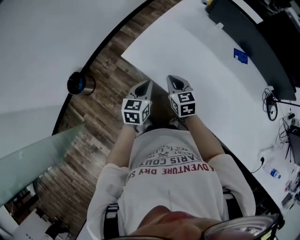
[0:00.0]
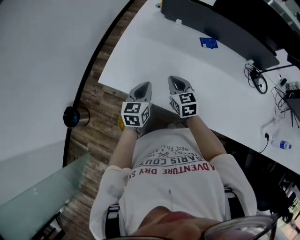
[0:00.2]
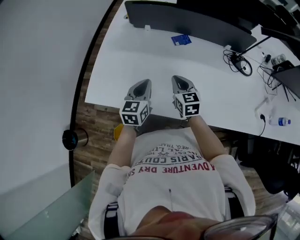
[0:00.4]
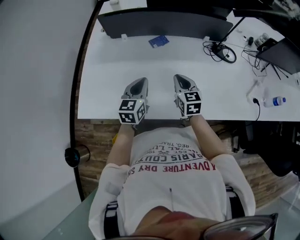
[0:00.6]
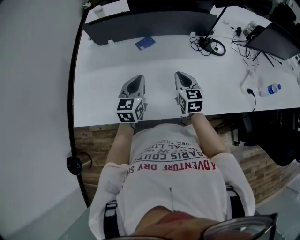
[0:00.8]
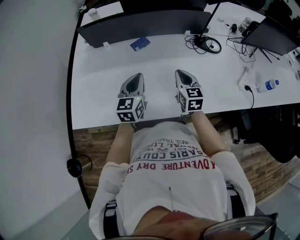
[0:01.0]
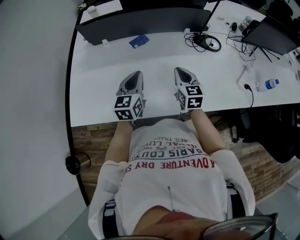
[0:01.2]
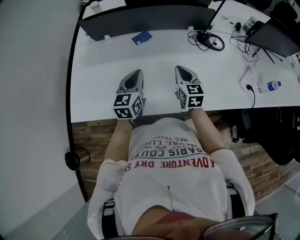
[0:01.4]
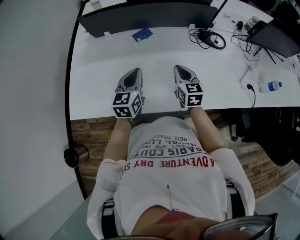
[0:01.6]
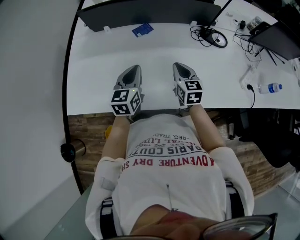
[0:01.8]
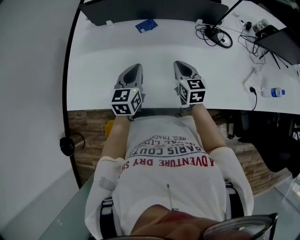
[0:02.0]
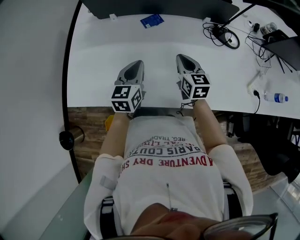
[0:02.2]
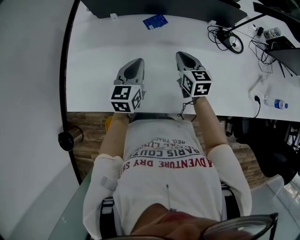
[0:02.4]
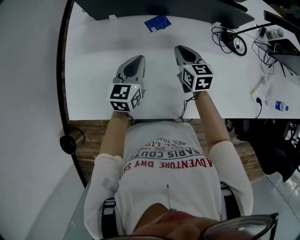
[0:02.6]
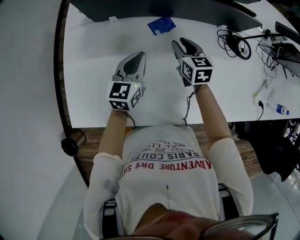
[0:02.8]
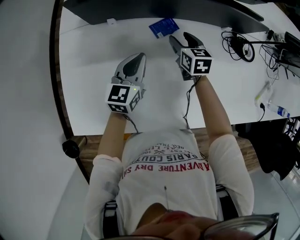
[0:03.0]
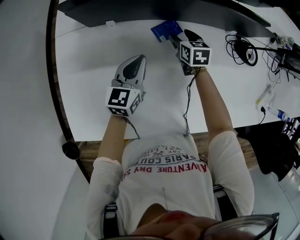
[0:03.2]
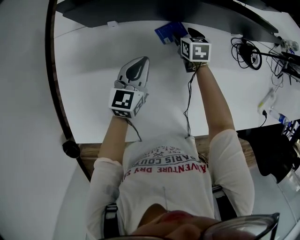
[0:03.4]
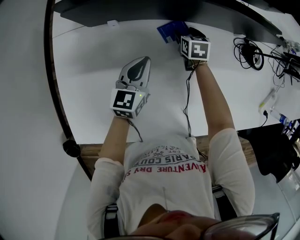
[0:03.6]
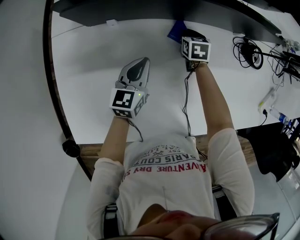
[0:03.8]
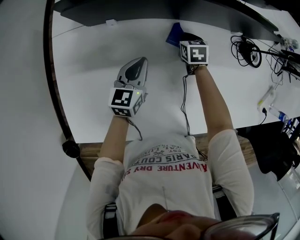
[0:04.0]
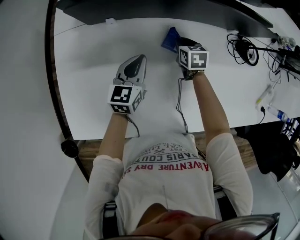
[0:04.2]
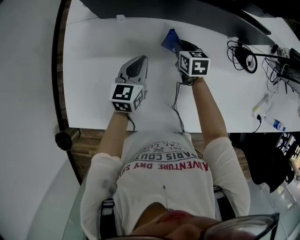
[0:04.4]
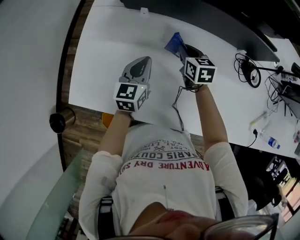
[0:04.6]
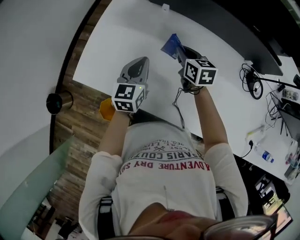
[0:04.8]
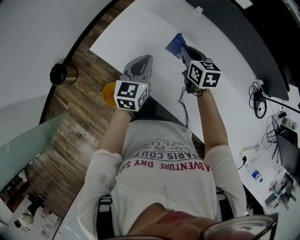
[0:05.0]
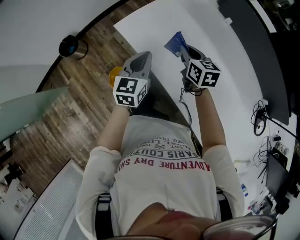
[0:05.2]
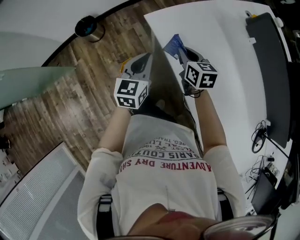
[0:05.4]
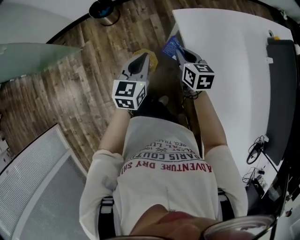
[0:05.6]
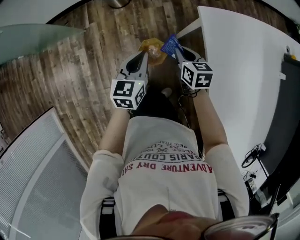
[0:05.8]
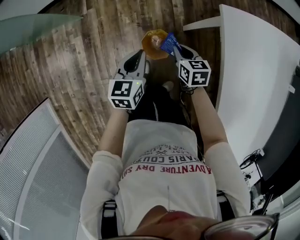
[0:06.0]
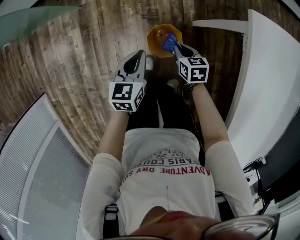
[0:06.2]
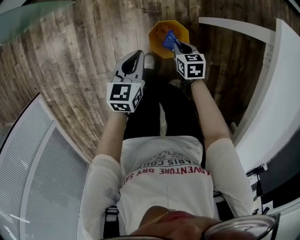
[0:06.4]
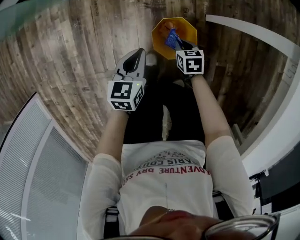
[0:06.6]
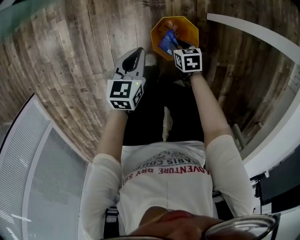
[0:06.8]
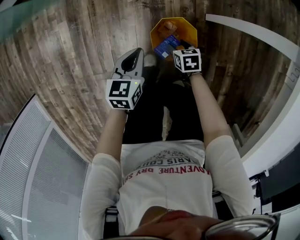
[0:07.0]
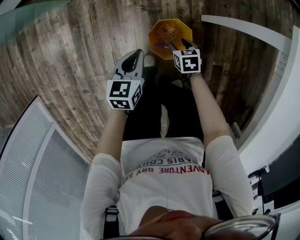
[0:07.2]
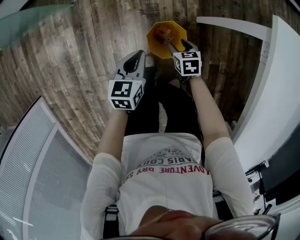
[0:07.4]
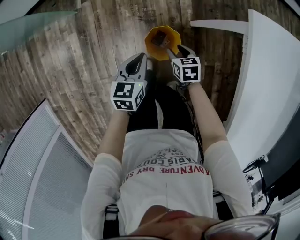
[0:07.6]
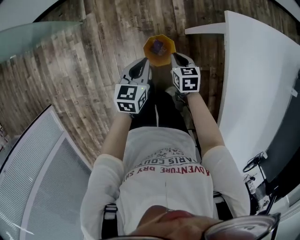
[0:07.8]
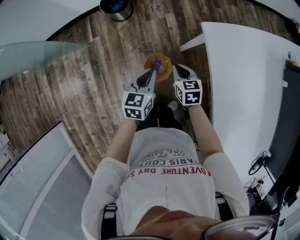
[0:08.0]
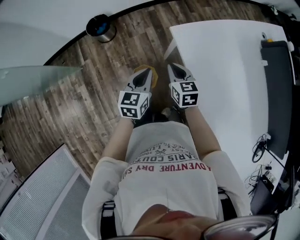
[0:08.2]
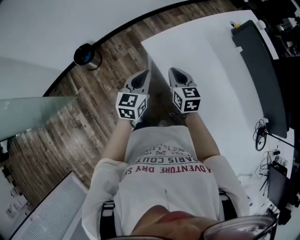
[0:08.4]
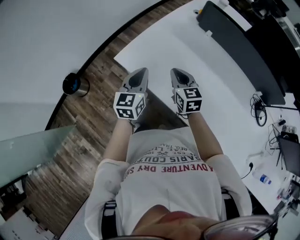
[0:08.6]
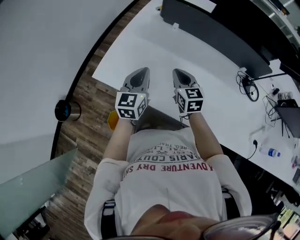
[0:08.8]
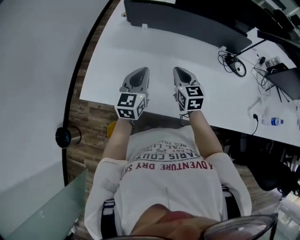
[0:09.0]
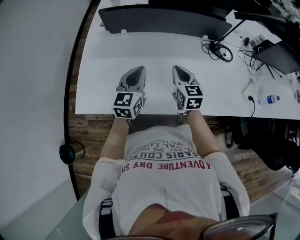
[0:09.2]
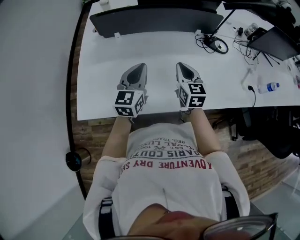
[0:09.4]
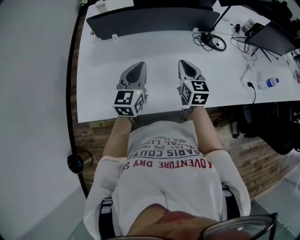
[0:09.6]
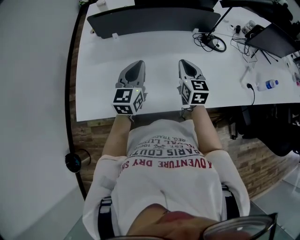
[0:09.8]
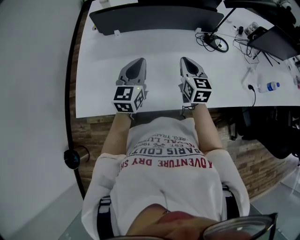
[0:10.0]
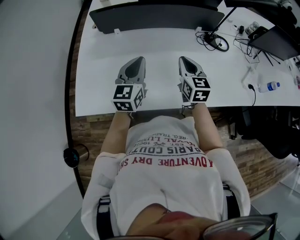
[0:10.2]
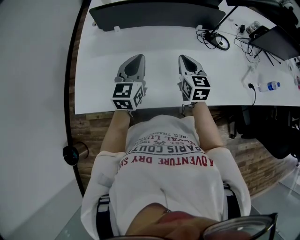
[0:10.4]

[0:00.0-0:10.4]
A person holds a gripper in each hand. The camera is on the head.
0.0 to 1.4 s: The left gripper ends up approximately 40 cm from where it was, and turns by roughly 40 degrees. The right gripper moves roughly 50 cm, and rotates about 50 degrees.
1.4 to 3.0 s: The left gripper travels forward, to the left and downward by approximately 25 cm. Meanwhile the right gripper shifts some 30 cm forward and to the left, rotates approximately 20 degrees, and opens.
3.0 to 4.4 s: The right gripper moves approximately 10 cm downward and comes back, and closes its fingers.
4.4 to 6.0 s: The two grippers travel together, roughly 70 cm. The left gripper rotates approximately 80 degrees. The right gripper rotates roughly 80 degrees.
6.0 to 7.4 s: Both grippers move downward, roughly 25 cm. The right gripper opens.
7.4 to 9.0 s: Both grippers are carried approximately 60 cm. The right gripper is displaced upward by roughly 60 cm, angles its fingers upward, by approximately 40 degrees, and closes up. The left gripper tilts its fingers about 30 degrees upward.
9.0 to 10.4 s: The right gripper goes roughly 10 cm to the right. The left gripper heads to the right, covering roughly 5 cm.

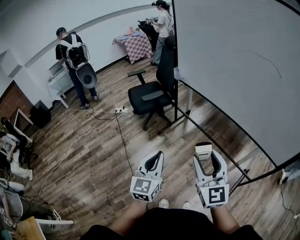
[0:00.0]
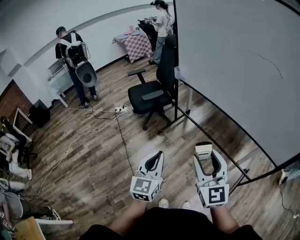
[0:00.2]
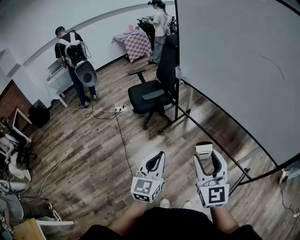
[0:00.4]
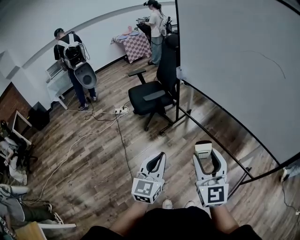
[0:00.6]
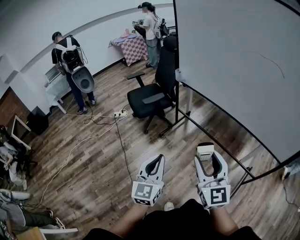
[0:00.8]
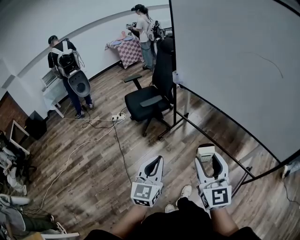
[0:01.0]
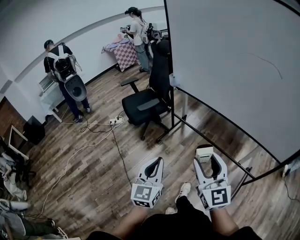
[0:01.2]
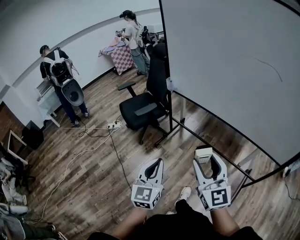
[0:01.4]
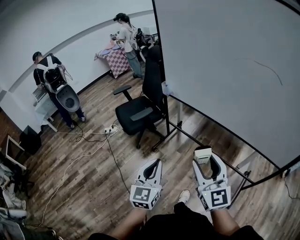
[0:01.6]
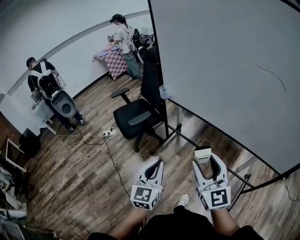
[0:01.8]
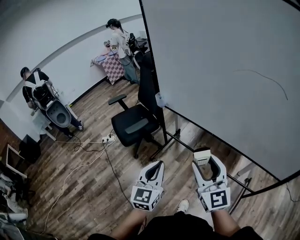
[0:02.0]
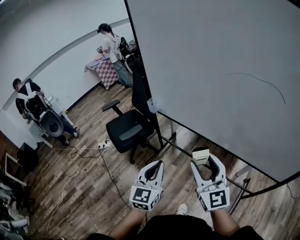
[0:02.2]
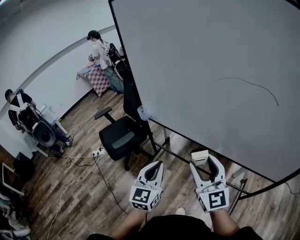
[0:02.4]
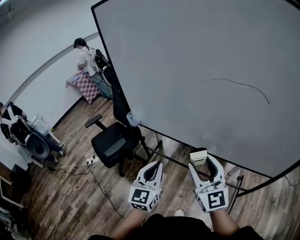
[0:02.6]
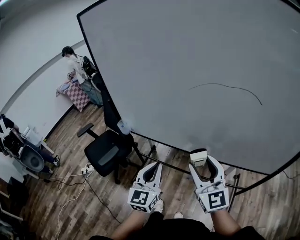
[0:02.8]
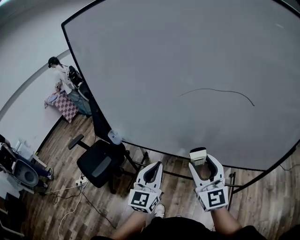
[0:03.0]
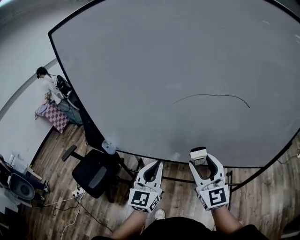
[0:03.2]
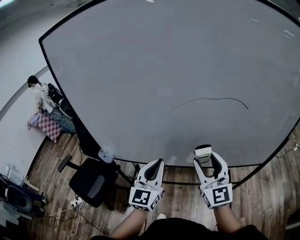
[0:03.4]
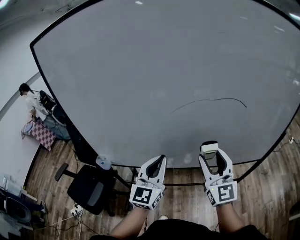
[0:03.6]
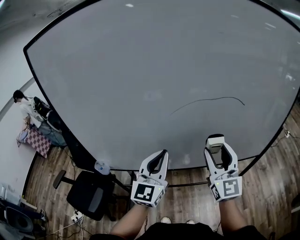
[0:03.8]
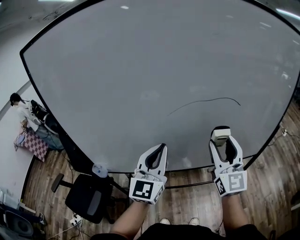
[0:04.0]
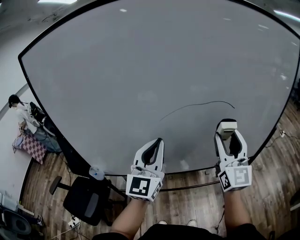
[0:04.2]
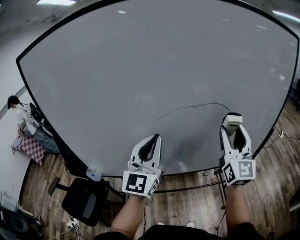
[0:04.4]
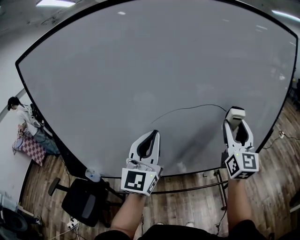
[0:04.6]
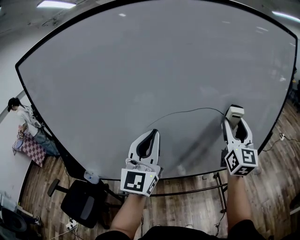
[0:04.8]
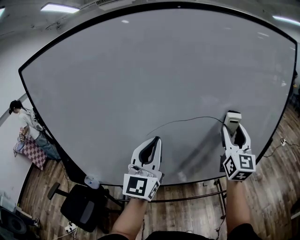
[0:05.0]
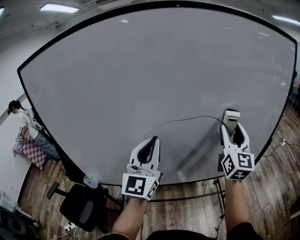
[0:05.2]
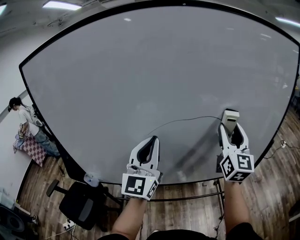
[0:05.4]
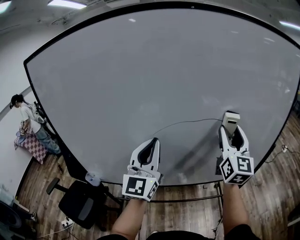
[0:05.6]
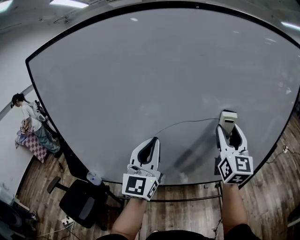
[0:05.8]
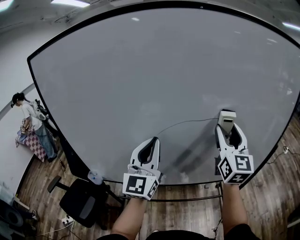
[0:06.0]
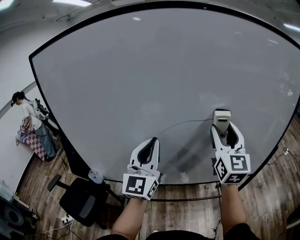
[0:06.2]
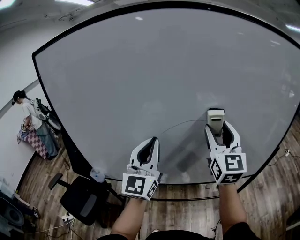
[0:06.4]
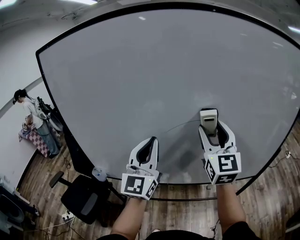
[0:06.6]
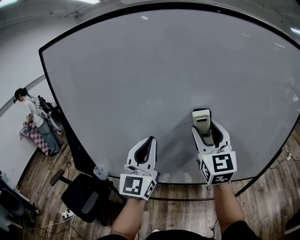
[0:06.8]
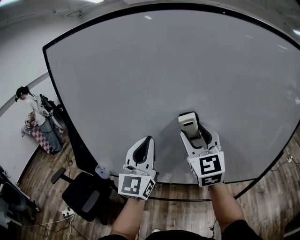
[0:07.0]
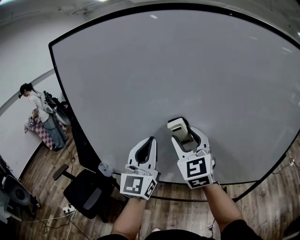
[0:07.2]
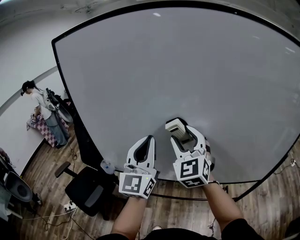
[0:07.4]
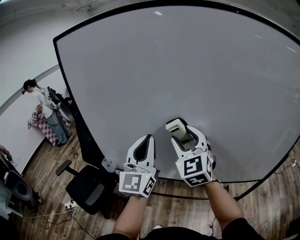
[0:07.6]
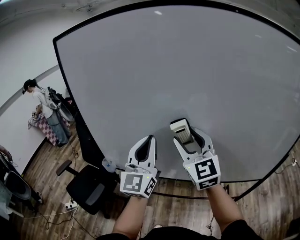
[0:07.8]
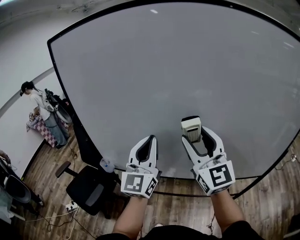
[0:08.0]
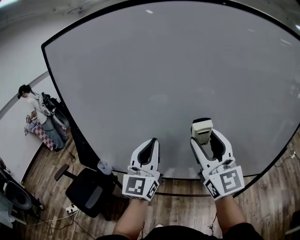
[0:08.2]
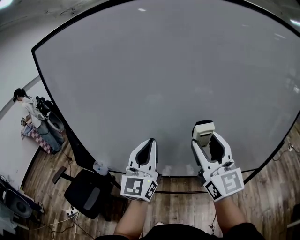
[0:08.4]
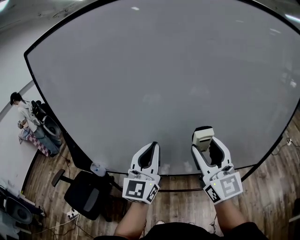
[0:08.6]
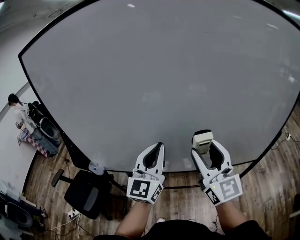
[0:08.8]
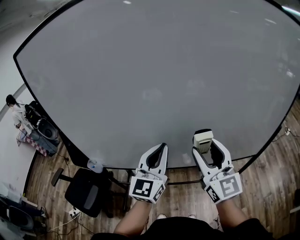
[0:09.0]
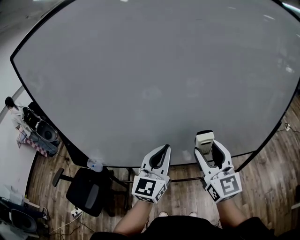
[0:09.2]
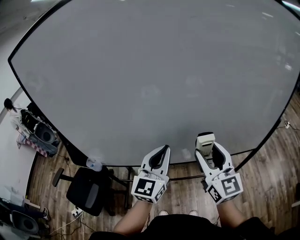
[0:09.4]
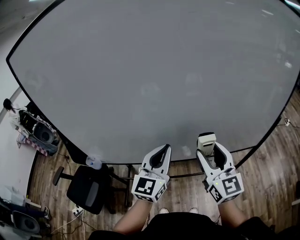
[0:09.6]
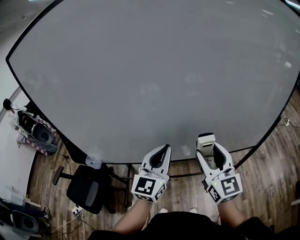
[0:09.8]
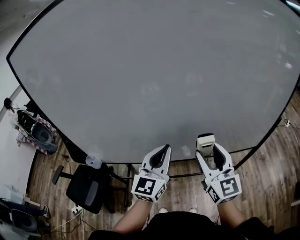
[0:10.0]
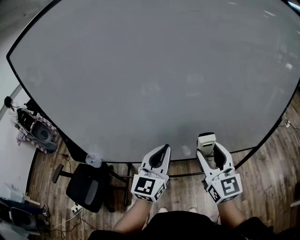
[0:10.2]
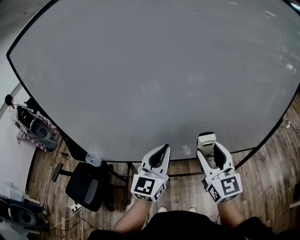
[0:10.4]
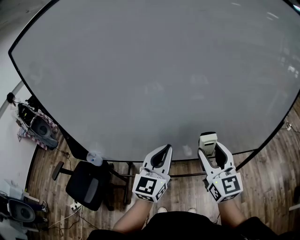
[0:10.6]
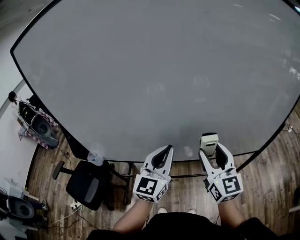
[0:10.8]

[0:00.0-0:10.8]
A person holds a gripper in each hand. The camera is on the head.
0.0 to 1.6 s: Both grippers move forward, approximately 15 cm.
1.6 to 3.0 s: The right gripper changes place by approximately 30 cm, and swivels some 20 degrees. The left gripper changes place by some 40 cm, and changes its angle by approximately 30 degrees.
3.0 to 4.6 s: The right gripper ends up roughly 25 cm from where it was, and swivels about 40 degrees. Meanwhile the left gripper heads upward, covering roughly 20 cm, and turns by approximately 30 degrees.
4.6 to 6.2 s: The right gripper is displaced to the left by some 10 cm.
6.2 to 7.8 s: The right gripper is displaced to the left by about 20 cm, and rotates roughly 30 degrees; the left gripper shifts about 10 cm to the left.
7.8 to 9.2 s: Both grippers move to the right and downward, approximately 20 cm. The left gripper changes its angle by about 30 degrees. The right gripper swivels some 20 degrees.
9.2 to 10.8 s: The grippers make only small movements.

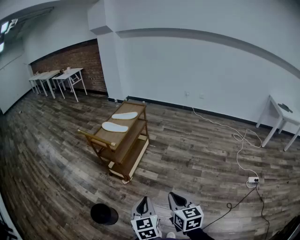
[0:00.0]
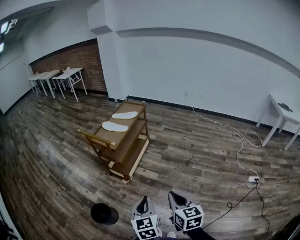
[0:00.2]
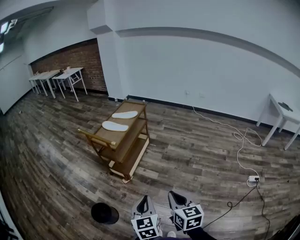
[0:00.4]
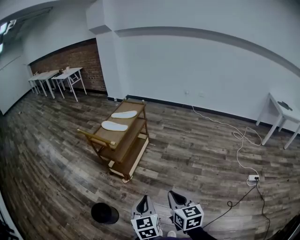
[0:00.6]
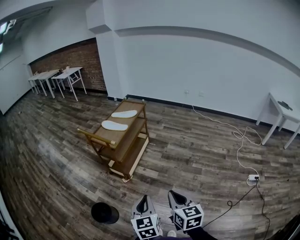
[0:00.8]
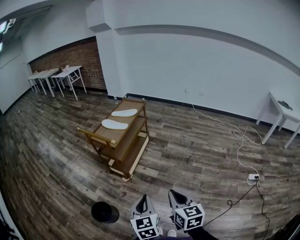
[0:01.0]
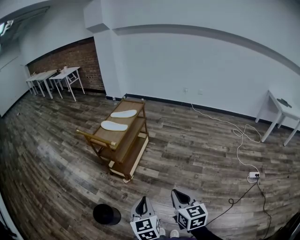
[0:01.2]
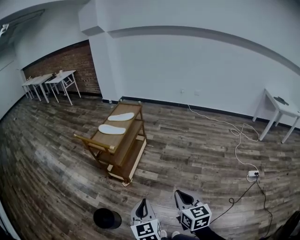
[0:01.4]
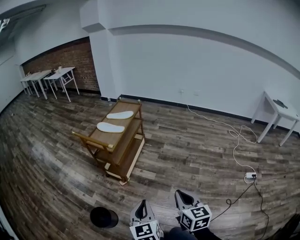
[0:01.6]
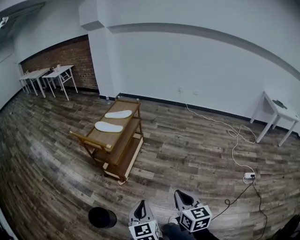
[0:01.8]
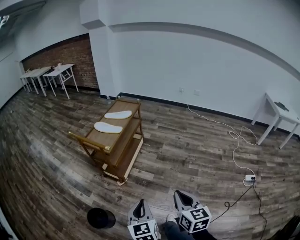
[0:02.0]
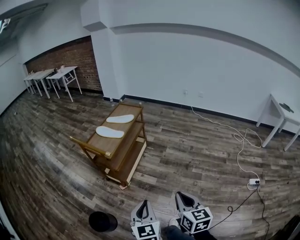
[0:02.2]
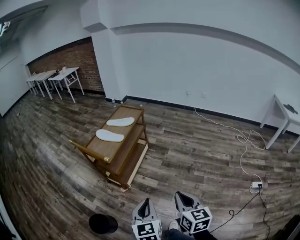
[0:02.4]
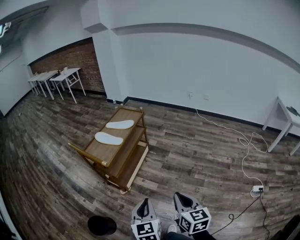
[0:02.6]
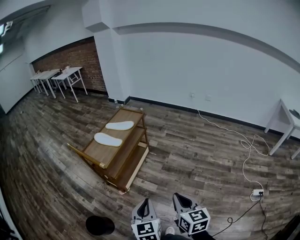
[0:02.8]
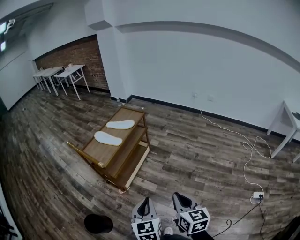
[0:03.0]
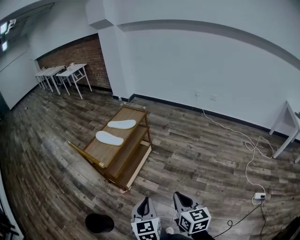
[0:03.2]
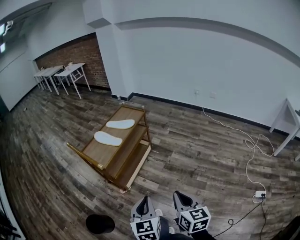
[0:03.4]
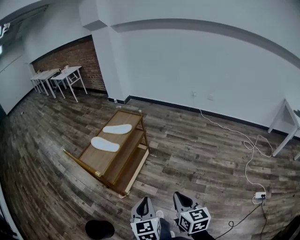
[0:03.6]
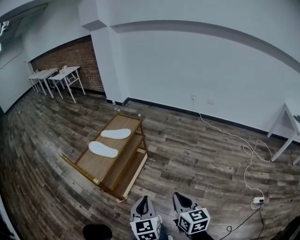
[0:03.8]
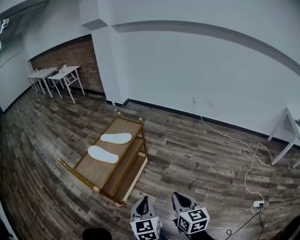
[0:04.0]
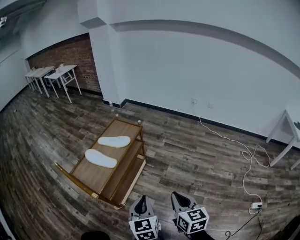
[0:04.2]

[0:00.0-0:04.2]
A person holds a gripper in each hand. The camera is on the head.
0.0 to 1.4 s: The grippers make only small movements.
1.4 to 2.8 s: Both grippers move forward and to the right, about 20 cm.
2.8 to 4.2 s: The grippers both shift forward by some 20 cm.
